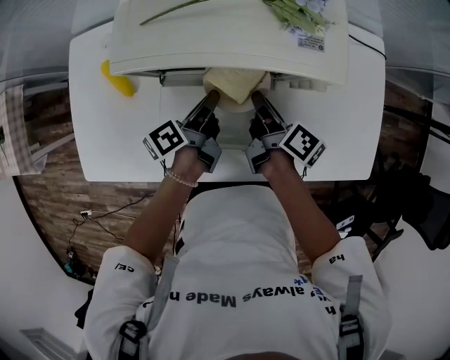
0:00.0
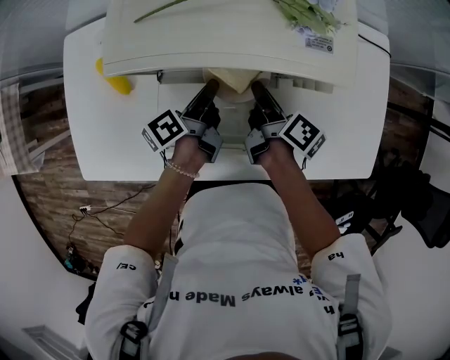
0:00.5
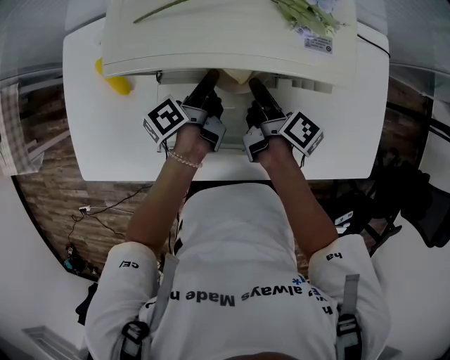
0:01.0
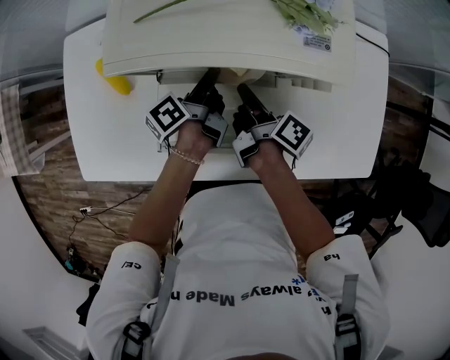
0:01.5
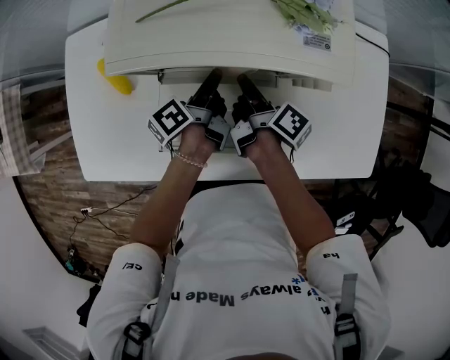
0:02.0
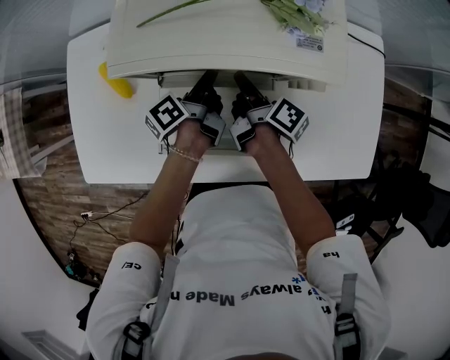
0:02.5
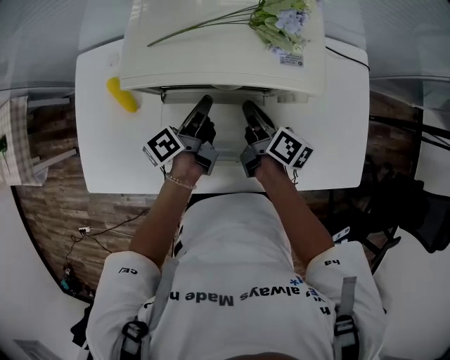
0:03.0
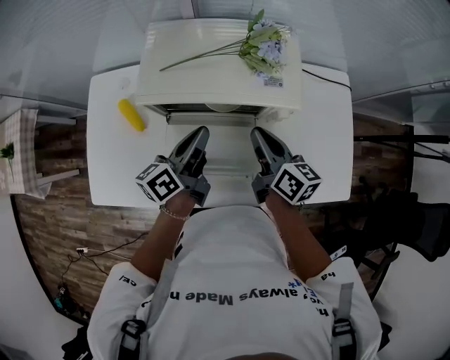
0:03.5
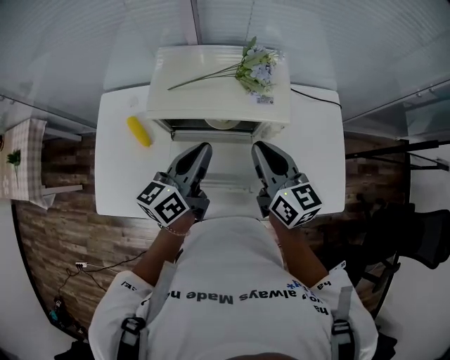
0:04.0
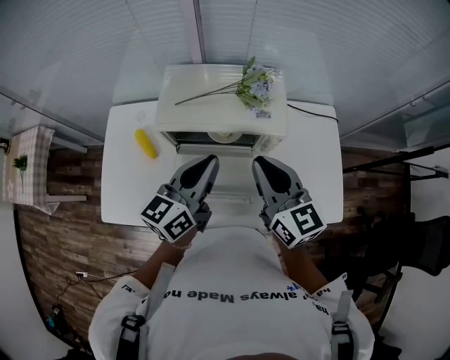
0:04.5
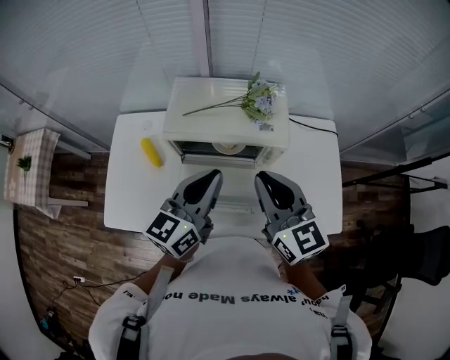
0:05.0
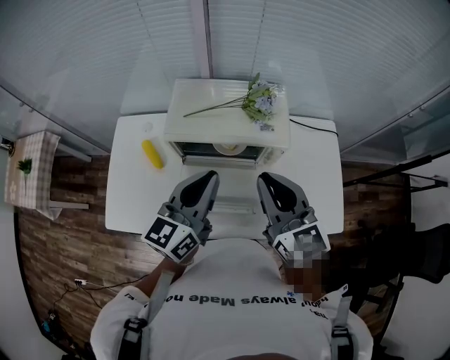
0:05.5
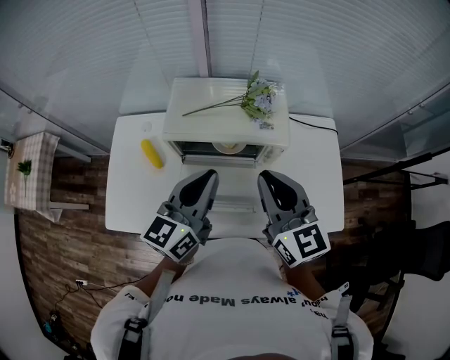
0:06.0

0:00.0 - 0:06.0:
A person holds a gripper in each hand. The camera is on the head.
0:00.0 - 0:02.0: The right gripper ends up roughly 5 cm from where it was.
0:02.0 - 0:04.0: The right gripper travels upward by approximately 25 cm, and rotates around the line of its fingers by approximately 60 degrees, counterclockwise from behind.
0:04.0 - 0:06.0: The right gripper heads upward, covering about 10 cm.

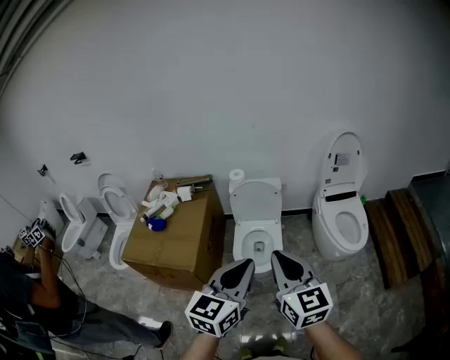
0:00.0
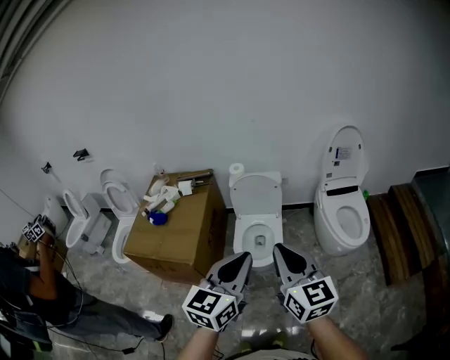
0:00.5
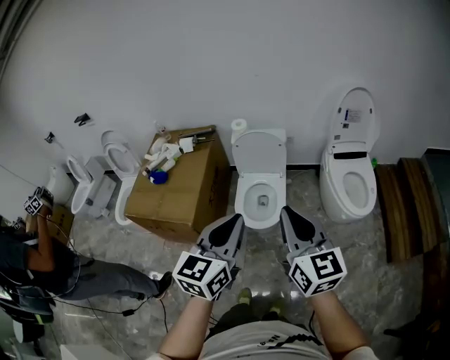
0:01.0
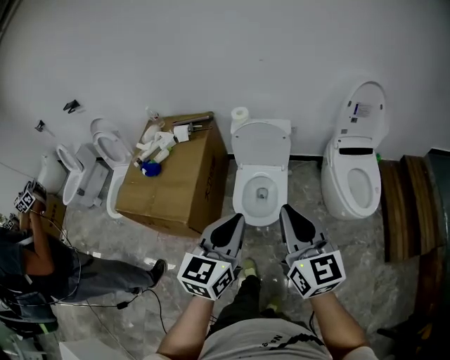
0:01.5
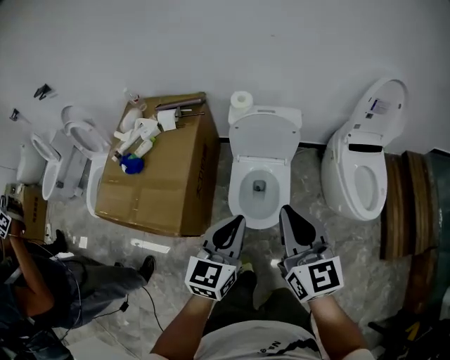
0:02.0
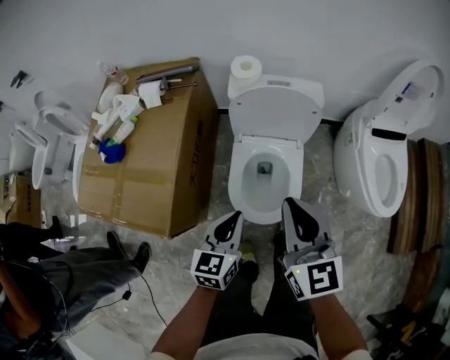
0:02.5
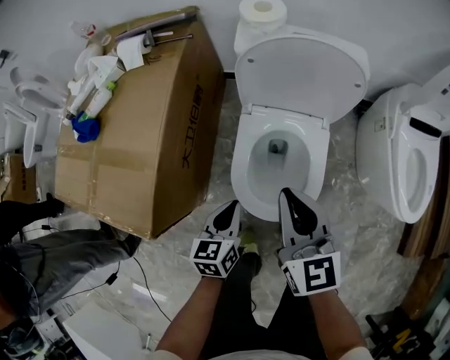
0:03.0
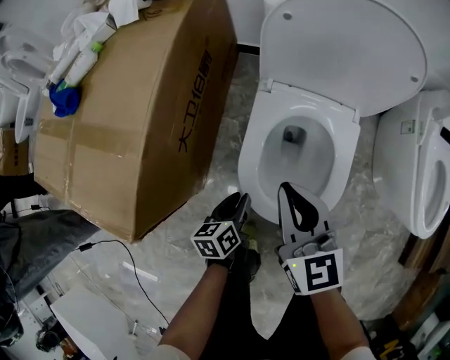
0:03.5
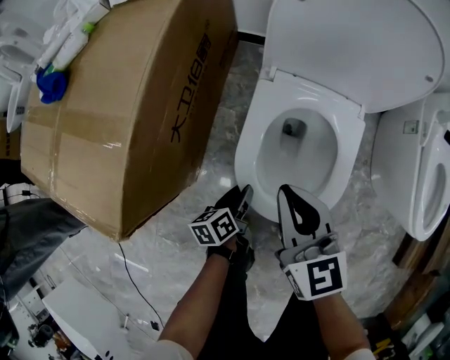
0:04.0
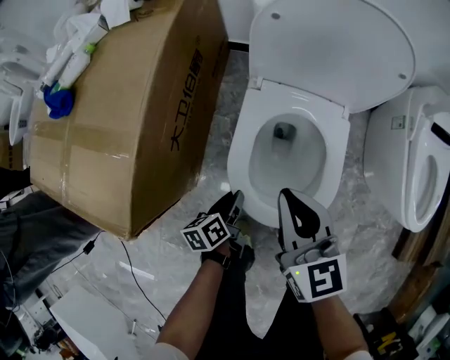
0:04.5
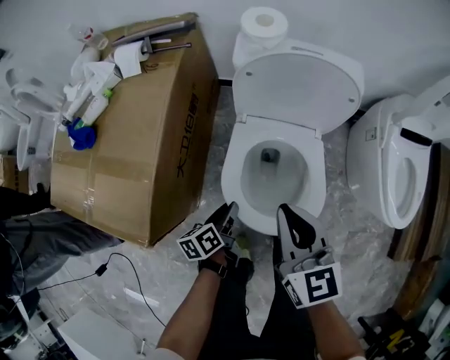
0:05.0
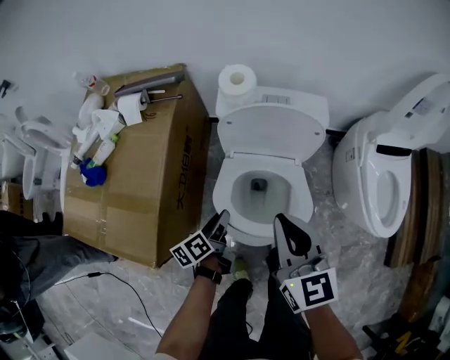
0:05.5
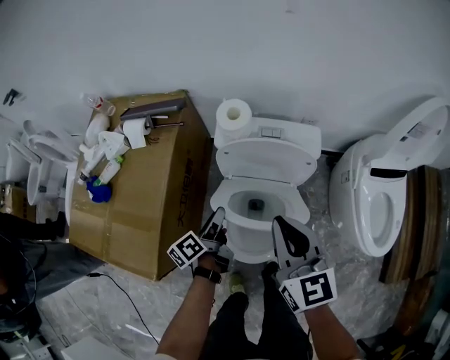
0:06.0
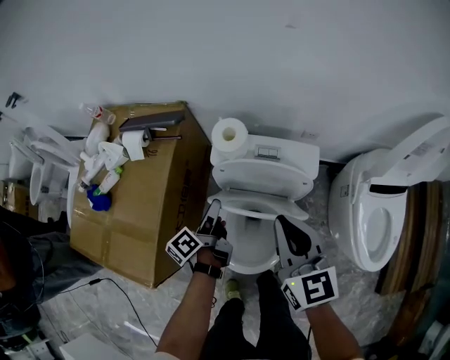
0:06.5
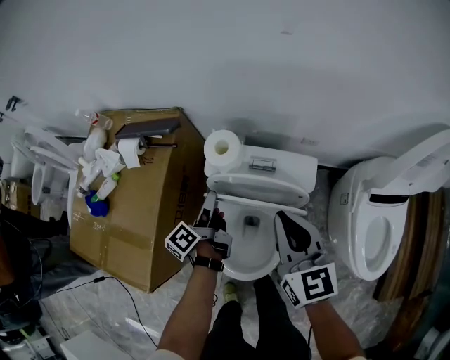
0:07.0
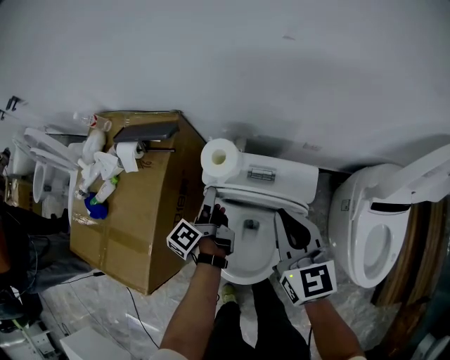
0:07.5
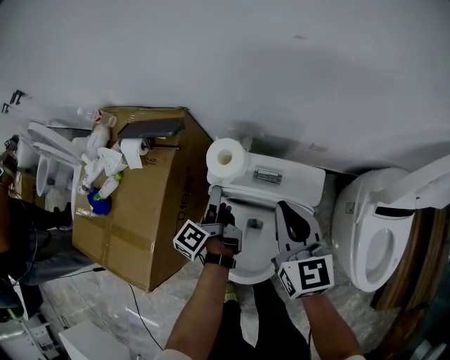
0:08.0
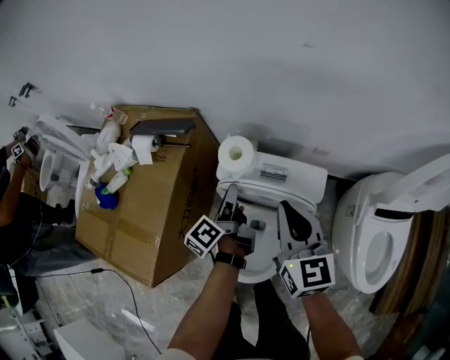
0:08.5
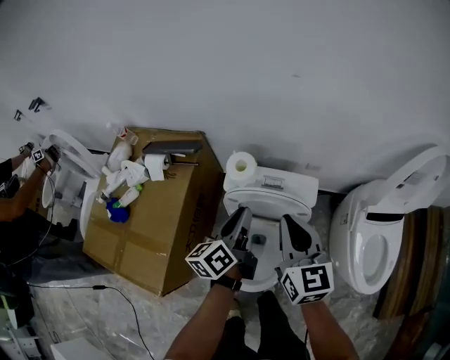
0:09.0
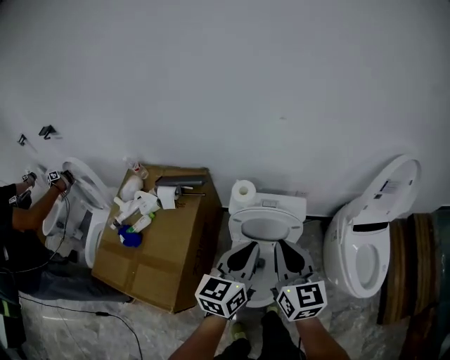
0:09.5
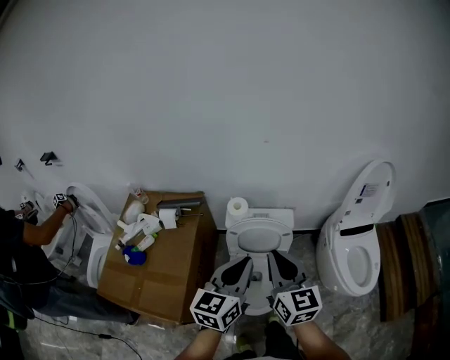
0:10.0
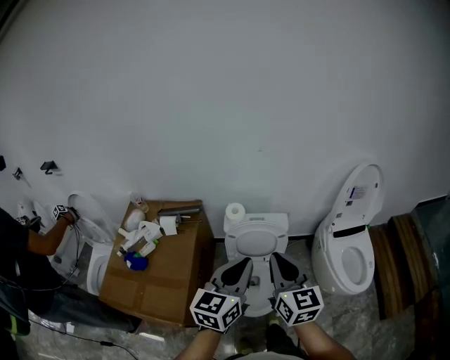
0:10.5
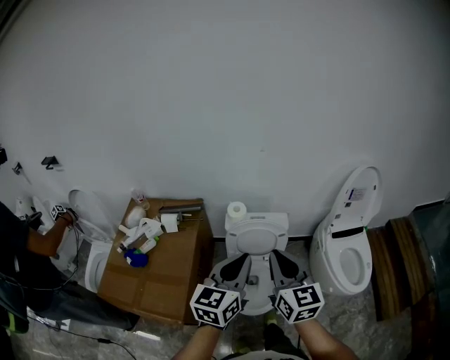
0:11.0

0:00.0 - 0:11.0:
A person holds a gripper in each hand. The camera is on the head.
0:00.0 - 0:02.0: The grippers both shift forward and downward by roughly 30 cm.
0:02.0 - 0:03.5: The grippers both shift downward by some 50 cm. The left gripper rolls counterclockwise, seen from behind, by approximately 40 degrees, and opens its fingers.
0:03.5 - 0:05.5: The left gripper moves upward and forward, roughly 25 cm, while the right gripper heads upward, covering some 25 cm.
0:05.5 - 0:07.5: The right gripper shifts roughly 25 cm forward and to the right. Meanwhile the left gripper moves forward and upward, roughly 30 cm, and swivels roughly 30 degrees.
0:07.5 - 0:09.0: The left gripper goes roughly 15 cm upward and backward, changes its angle by about 30 degrees, and closes, while the right gripper goes some 5 cm upward.
0:09.0 - 0:11.0: The right gripper goes roughly 30 cm backward and upward; the left gripper shifts about 40 cm upward and backward, and changes its angle by approximately 40 degrees.

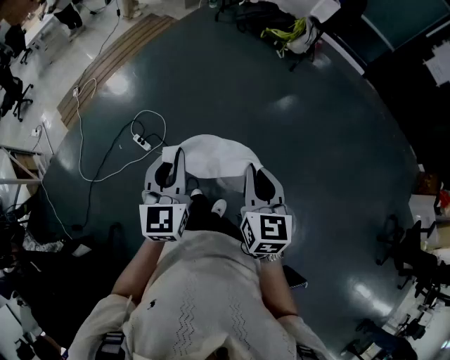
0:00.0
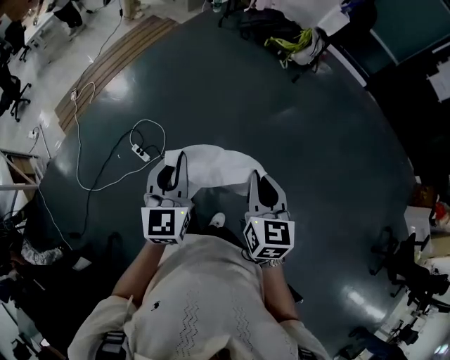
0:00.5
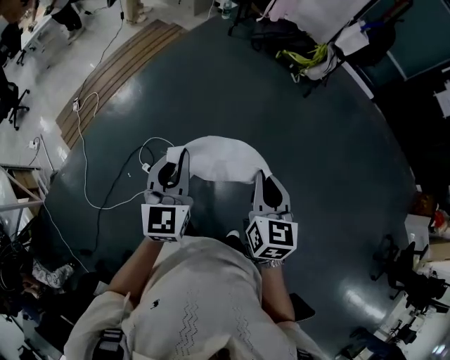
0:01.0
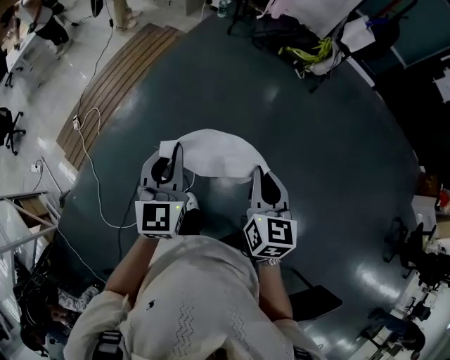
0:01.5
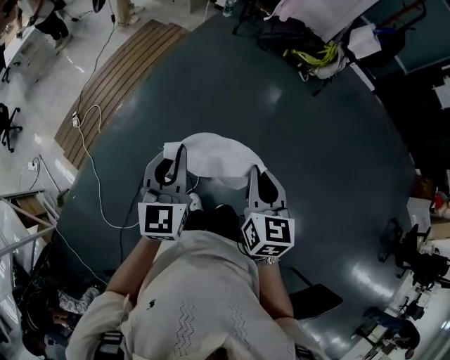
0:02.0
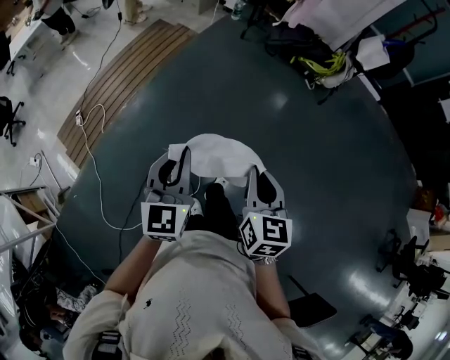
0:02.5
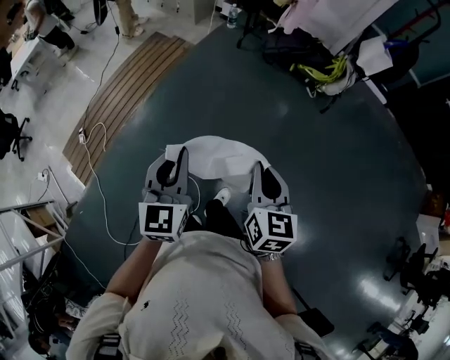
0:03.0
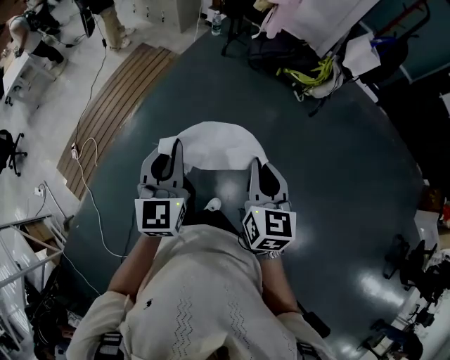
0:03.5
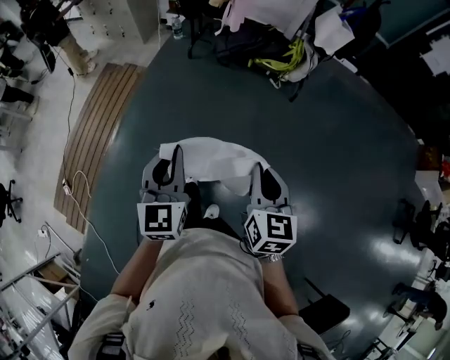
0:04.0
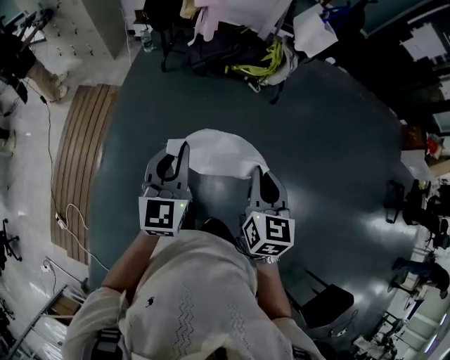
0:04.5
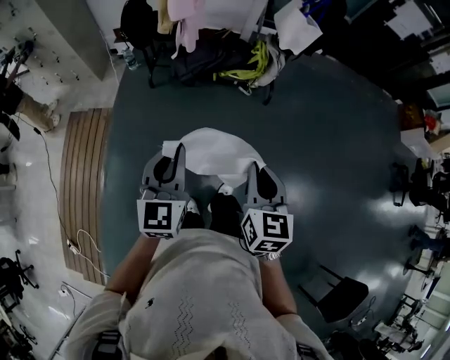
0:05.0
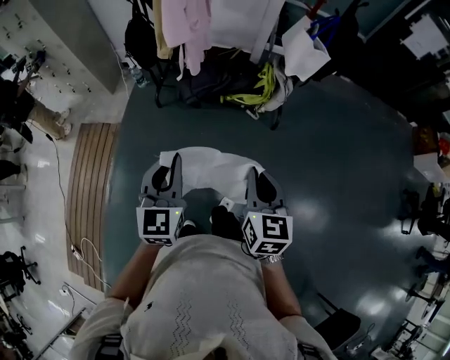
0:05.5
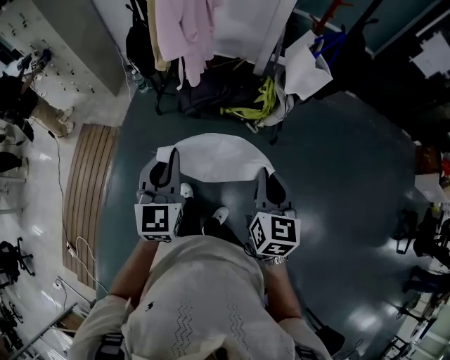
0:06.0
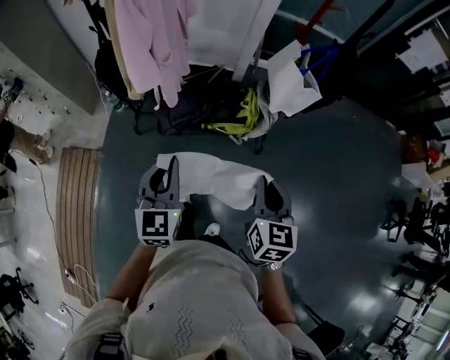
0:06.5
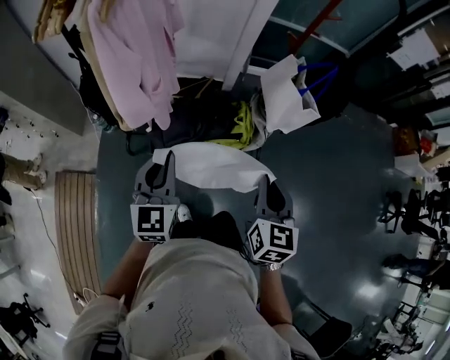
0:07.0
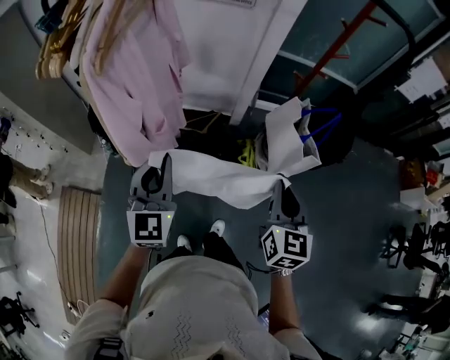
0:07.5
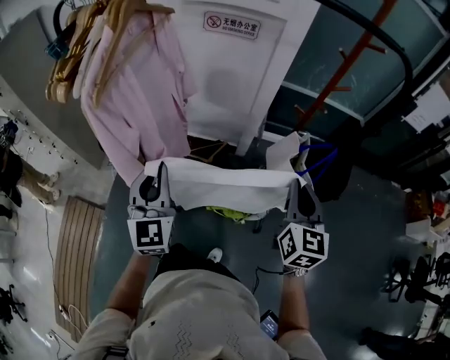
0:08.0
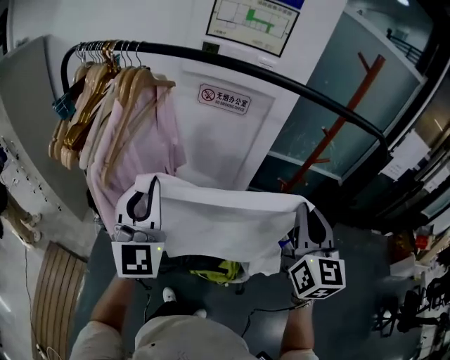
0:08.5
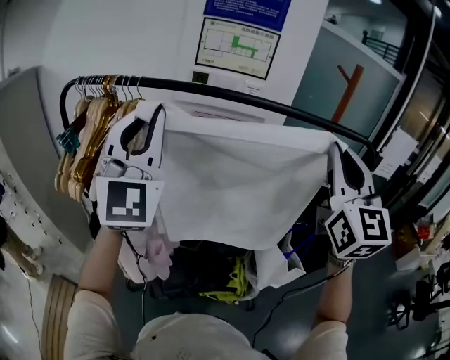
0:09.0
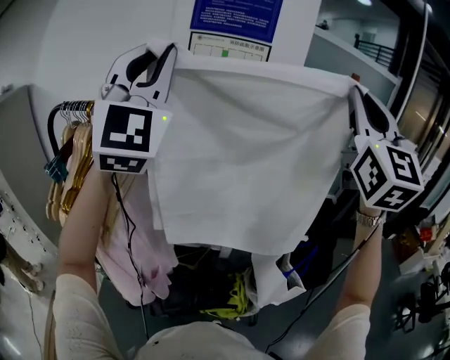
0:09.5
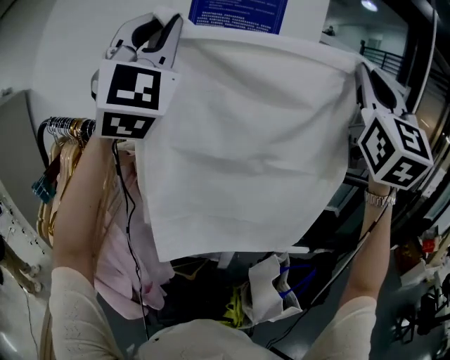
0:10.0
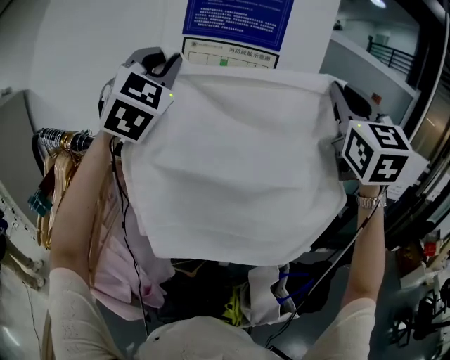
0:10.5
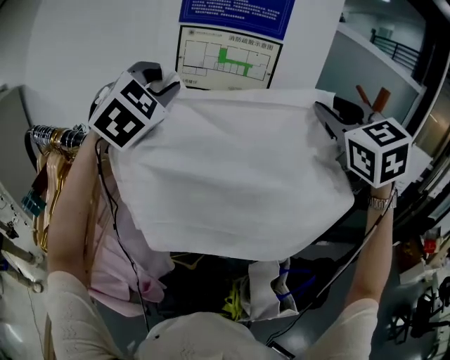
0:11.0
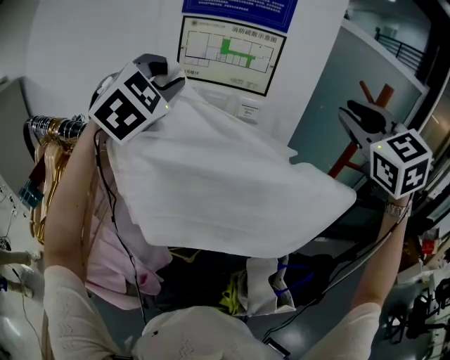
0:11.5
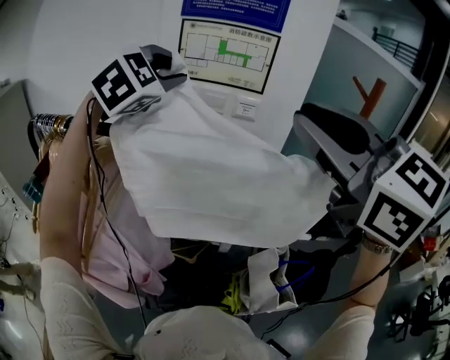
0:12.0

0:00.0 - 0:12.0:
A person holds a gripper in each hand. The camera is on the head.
0:00.0 - 0:02.0: The pair of grippers is taken to the left and forward, approximately 60 cm.
0:02.0 - 0:04.0: The two grippers go about 35 cm forward and to the right.
0:04.0 - 0:06.0: The two grippers travel together, forward, some 50 cm.
0:06.0 - 0:08.0: The pair of grippers is taken forward, some 50 cm.
0:08.0 - 0:10.0: Both grippers move upward and forward, approximately 60 cm. The left gripper points its fingers about 40 degrees further upward. Meanwhile the right gripper points its fingers some 40 degrees further upward.
0:10.0 - 0:12.0: The left gripper moves downward and forward, some 20 cm, and angles its fingers downward, by about 60 degrees; the right gripper moves downward and to the left, some 15 cm, goes forward and returns, some 15 cm each way, and tilts its fingers about 40 degrees downward.
